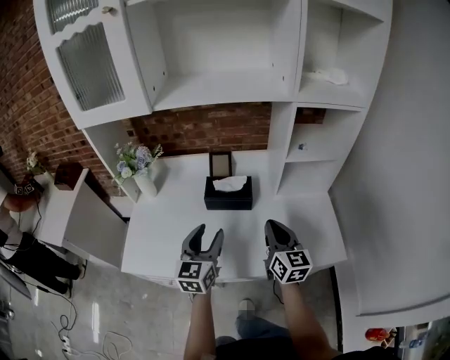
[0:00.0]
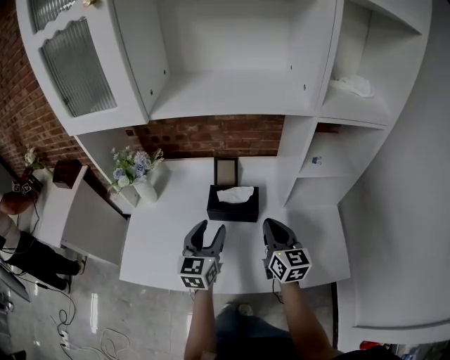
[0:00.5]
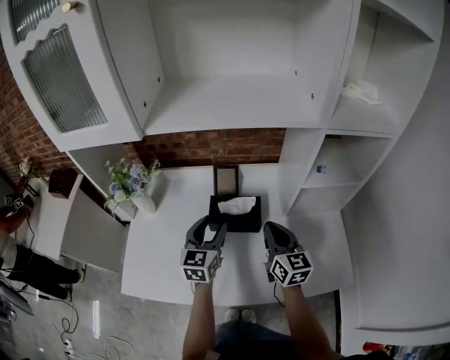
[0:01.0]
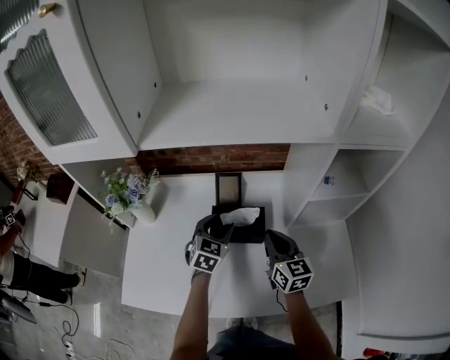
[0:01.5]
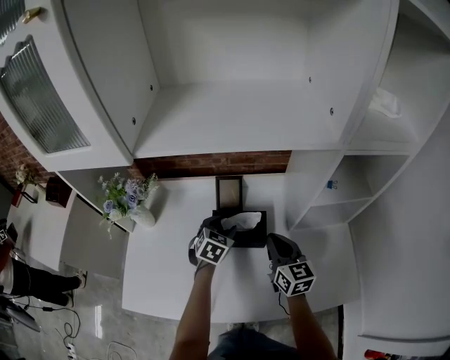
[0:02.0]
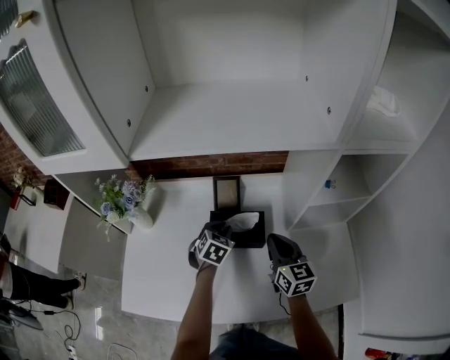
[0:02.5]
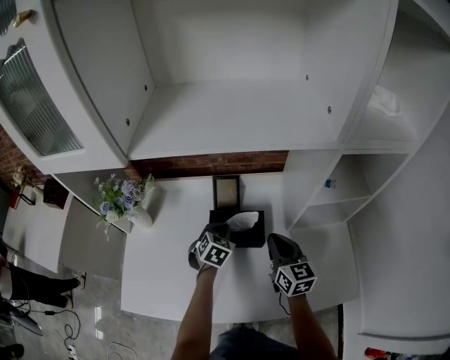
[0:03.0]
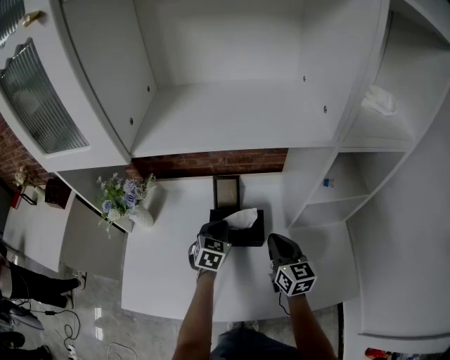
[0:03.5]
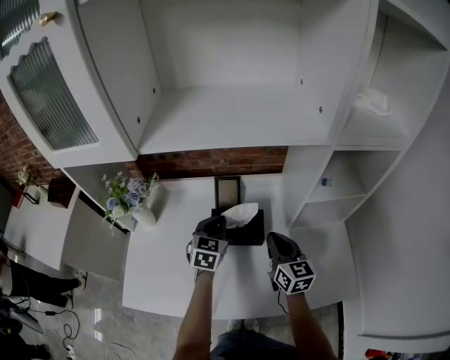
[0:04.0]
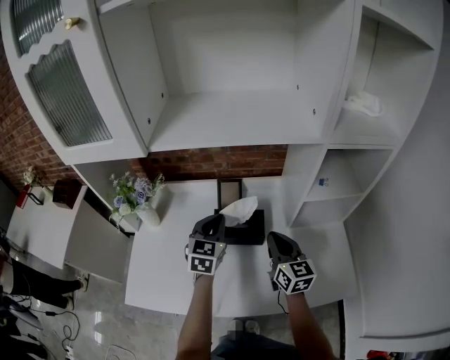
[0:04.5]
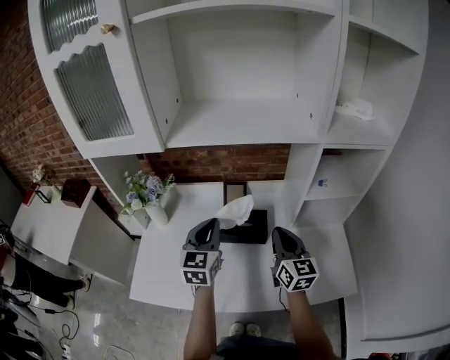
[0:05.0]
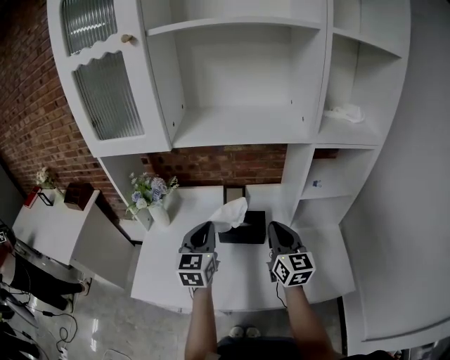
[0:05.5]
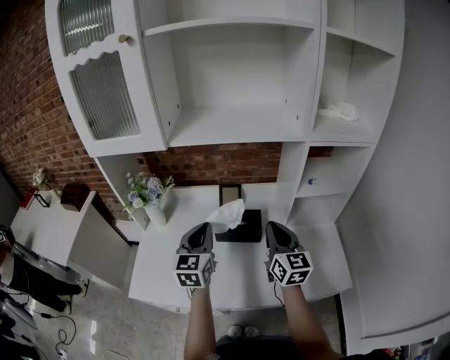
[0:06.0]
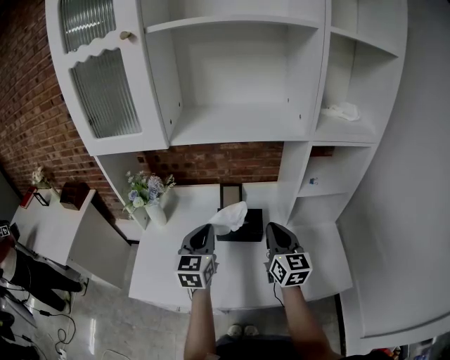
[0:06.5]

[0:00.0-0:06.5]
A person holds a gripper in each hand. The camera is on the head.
0:00.0 to 0:02.0: The right gripper travels forward by approximately 15 cm, while the left gripper moves forward and downward, approximately 30 cm, and angles its fingers downward, by about 30 degrees.
0:02.0 to 0:04.5: The left gripper shifts roughly 15 cm upward, swivels about 20 degrees, and closes.
0:04.5 to 0:06.5: The left gripper is displaced backward and upward by about 10 cm; the right gripper moves upward and backward, roughly 10 cm.

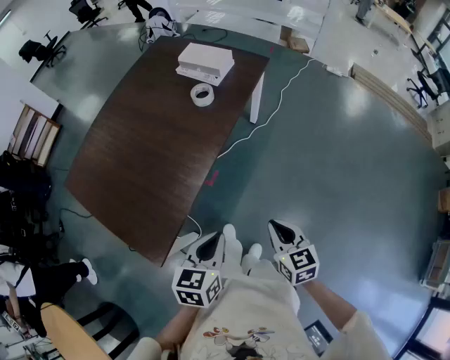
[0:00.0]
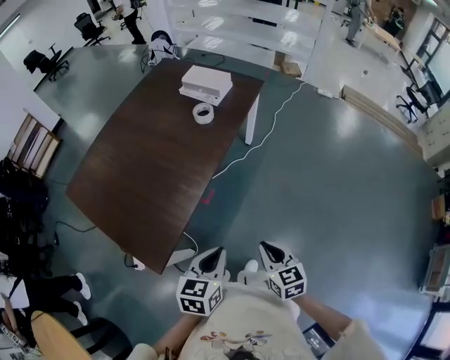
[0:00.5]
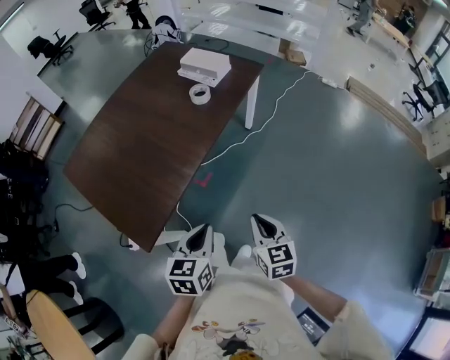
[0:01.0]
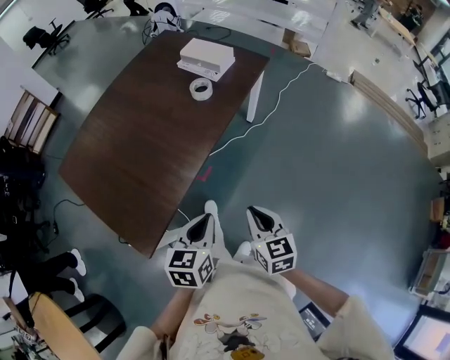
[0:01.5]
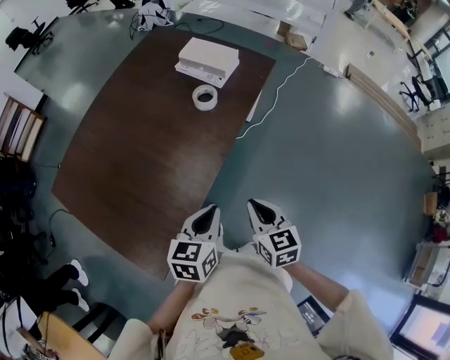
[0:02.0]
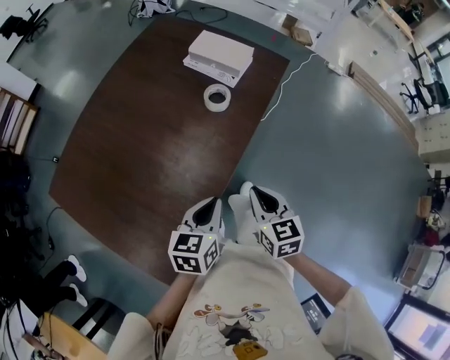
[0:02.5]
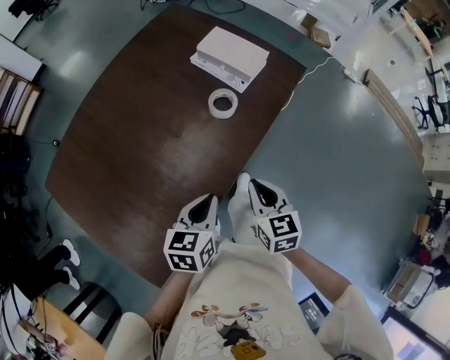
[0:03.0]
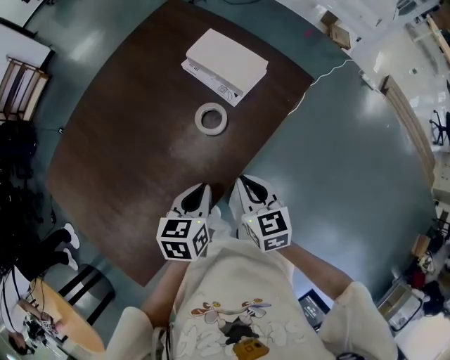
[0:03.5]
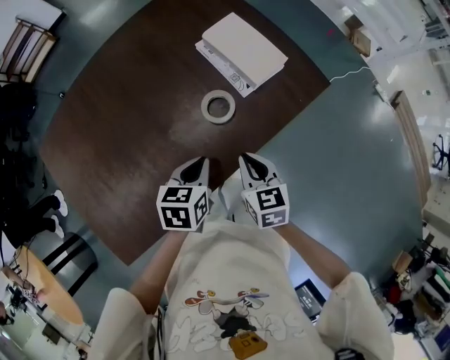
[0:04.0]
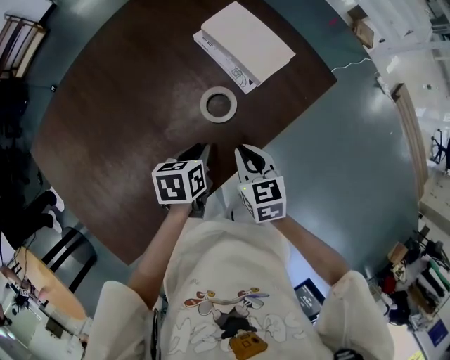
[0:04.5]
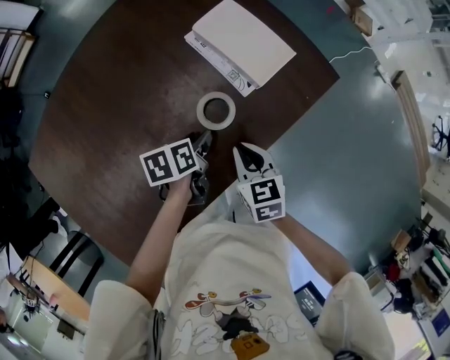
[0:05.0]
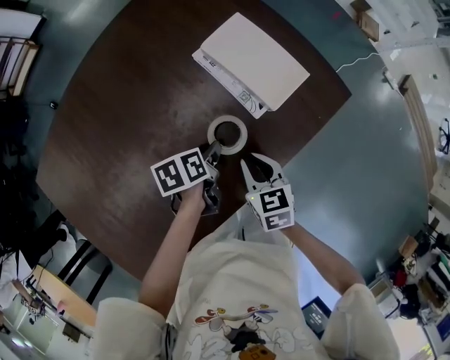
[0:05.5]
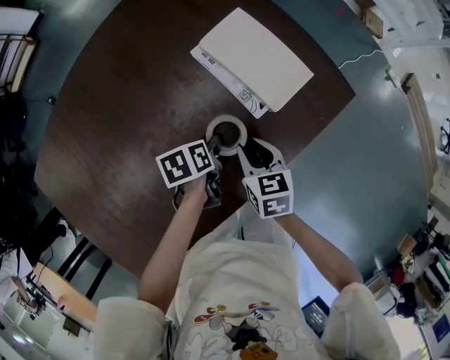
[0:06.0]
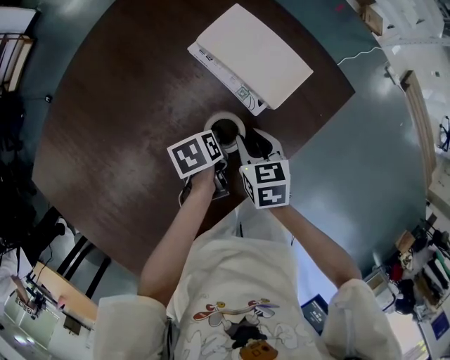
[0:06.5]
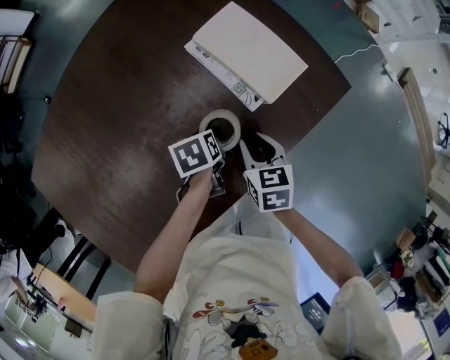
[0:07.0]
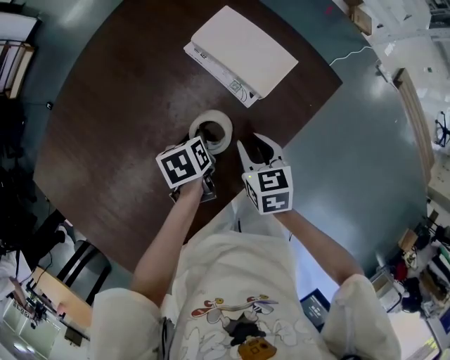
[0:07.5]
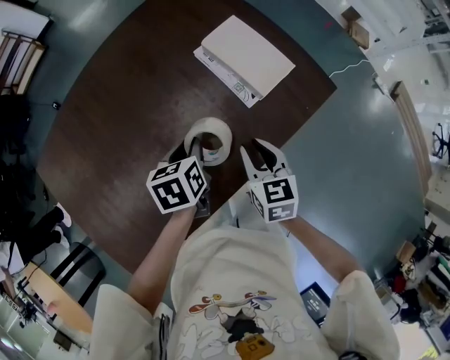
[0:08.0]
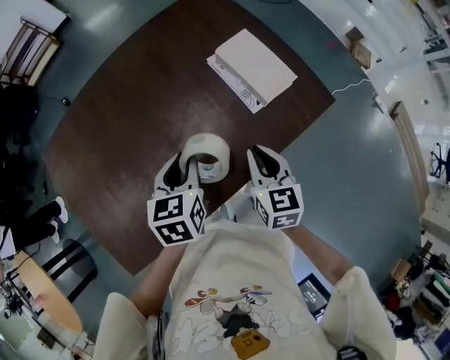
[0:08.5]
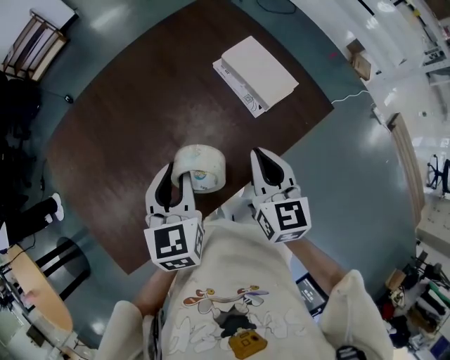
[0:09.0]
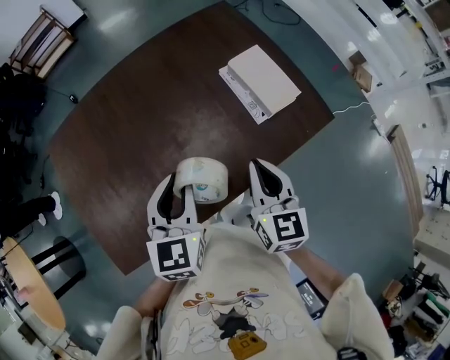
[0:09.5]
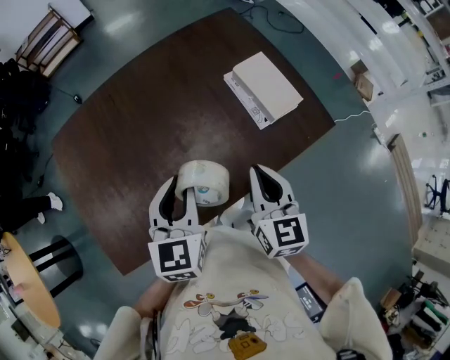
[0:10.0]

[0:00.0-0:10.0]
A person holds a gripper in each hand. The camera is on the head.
0:00.0 to 0:02.0: The left gripper shifts some 15 cm forward, while the right gripper shifts approximately 15 cm forward and to the left.
0:02.0 to 0:04.0: The grippers both shift forward by some 35 cm. The left gripper changes its angle by about 30 degrees; the right gripper turns by approximately 20 degrees.
0:04.0 to 0:06.0: The left gripper is displaced downward and forward by some 25 cm, swivels some 30 degrees, and opens. Meanwhile the right gripper travels forward and downward by about 15 cm, and opens up.
0:06.0 to 0:08.0: The right gripper goes some 10 cm upward and backward. Meanwhile the left gripper travels upward by about 15 cm, and changes its angle by roughly 20 degrees.
0:08.0 to 0:10.0: The left gripper goes about 20 cm upward and backward, and changes its angle by about 40 degrees, while the right gripper heads upward, covering some 15 cm, and closes.

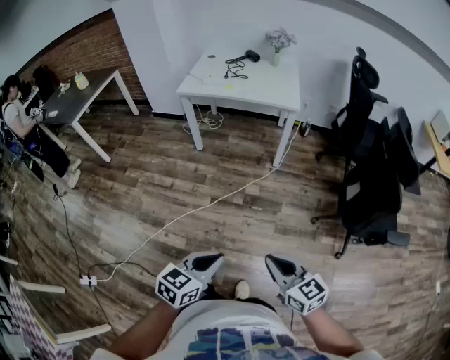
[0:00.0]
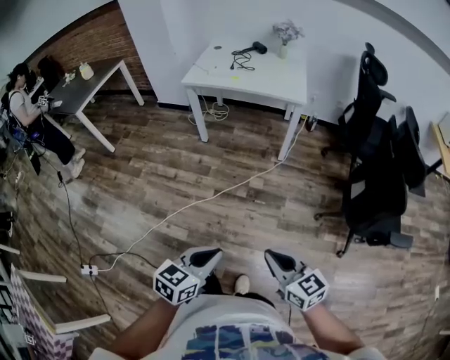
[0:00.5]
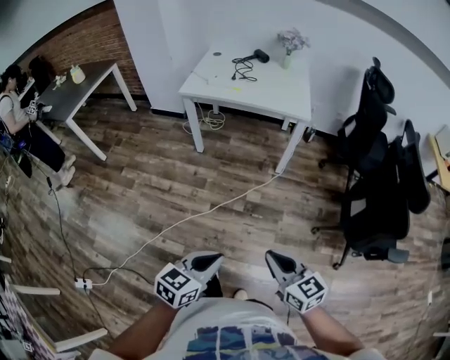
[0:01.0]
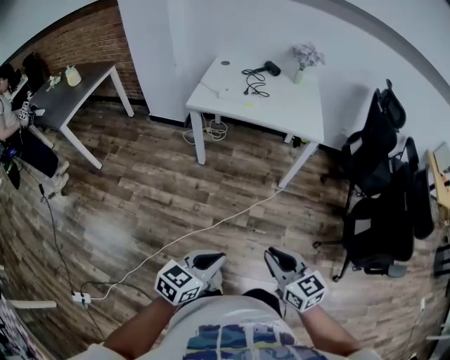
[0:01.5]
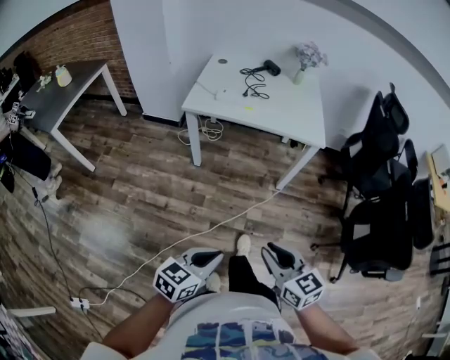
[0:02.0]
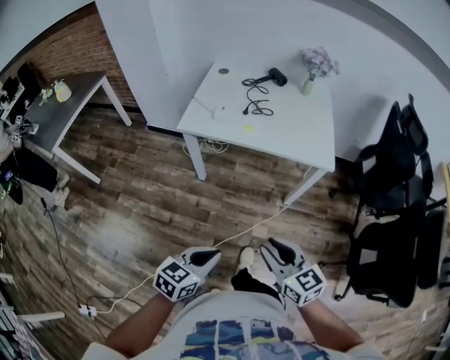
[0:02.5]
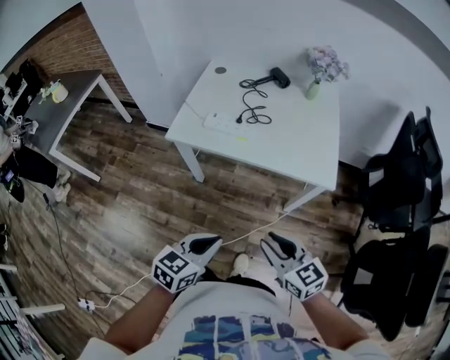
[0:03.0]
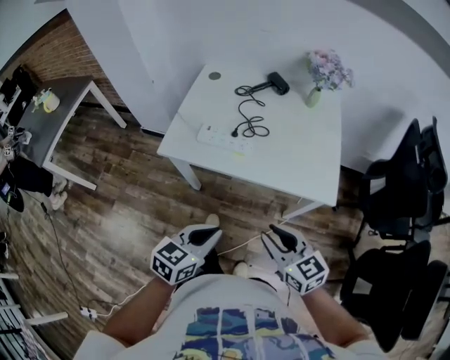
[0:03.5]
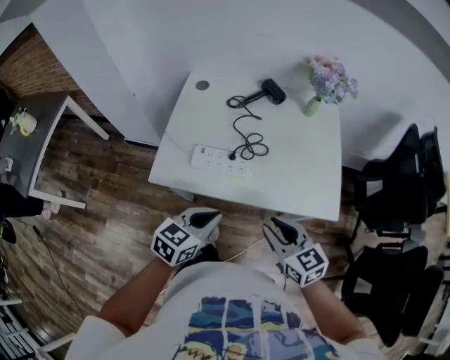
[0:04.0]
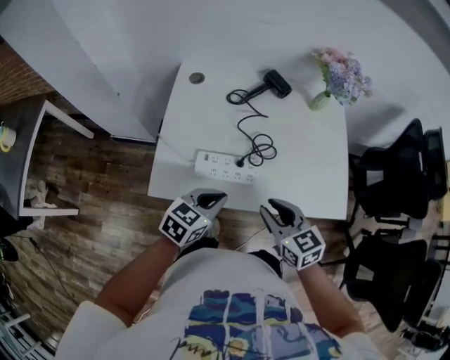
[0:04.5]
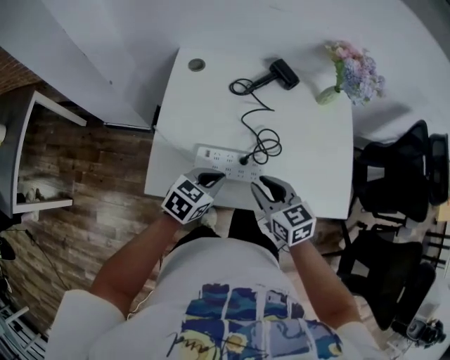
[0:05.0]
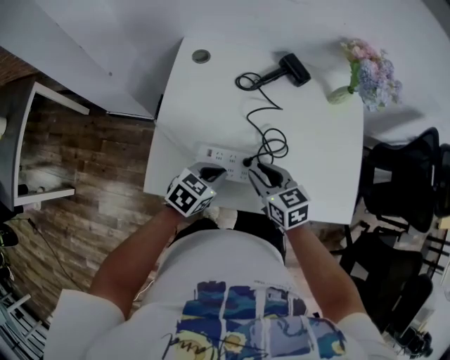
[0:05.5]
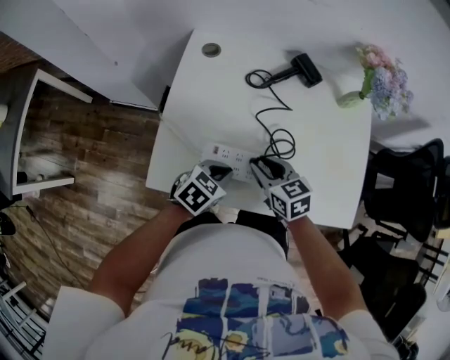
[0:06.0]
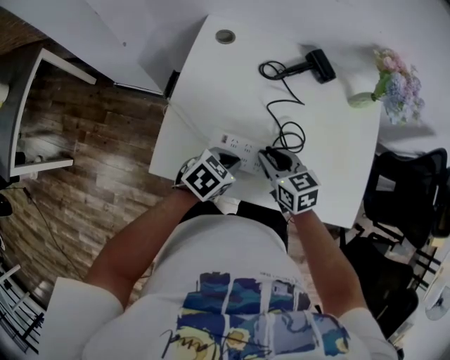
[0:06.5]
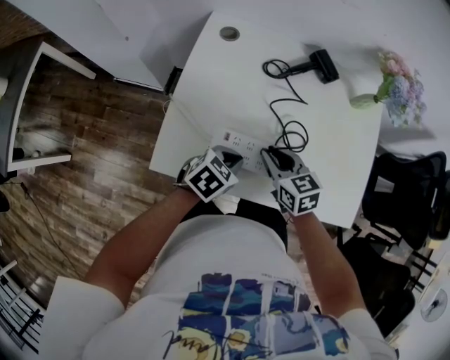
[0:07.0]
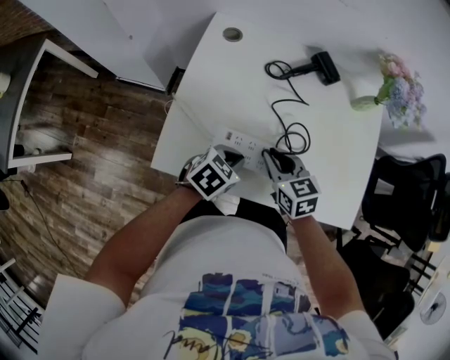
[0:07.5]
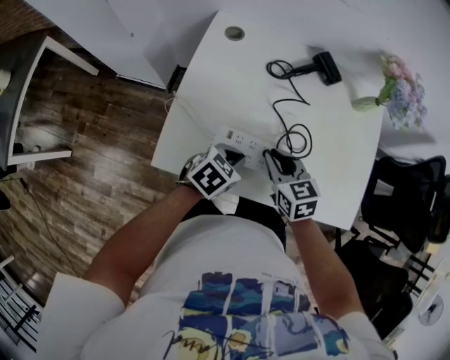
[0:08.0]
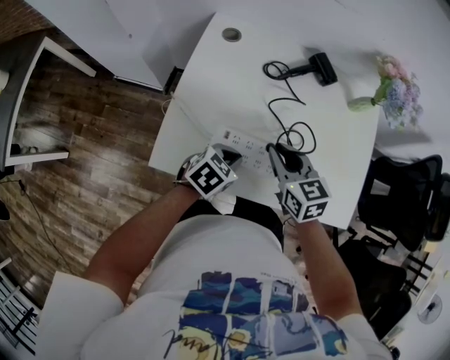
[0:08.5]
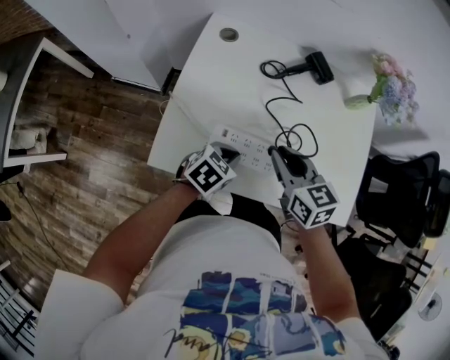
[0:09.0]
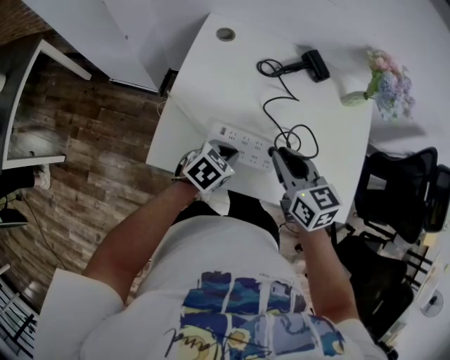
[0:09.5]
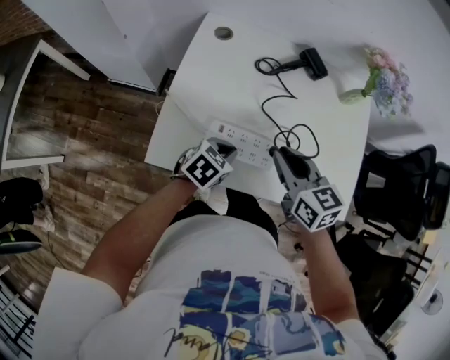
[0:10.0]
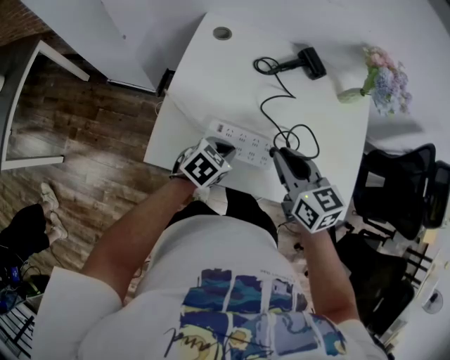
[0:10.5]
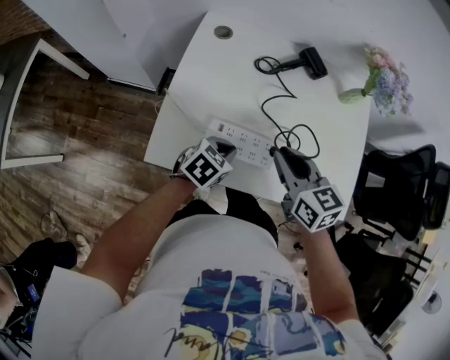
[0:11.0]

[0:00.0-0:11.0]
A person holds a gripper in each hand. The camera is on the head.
0:00.0 to 0:02.0: Both grippers move forward and to the left, approximately 35 cm.
0:02.0 to 0:03.5: The pair of grippers is taken forward, roughly 40 cm.
0:03.5 to 0:05.5: The right gripper shifts some 40 cm forward and to the left; the left gripper heads forward and downward, covering approximately 40 cm, and rotates roughly 20 degrees.
0:05.5 to 0:07.5: The grippers make only small movements.
0:07.5 to 0:09.0: The right gripper goes approximately 10 cm upward.
0:09.0 to 0:11.0: The grippers make only small movements.
